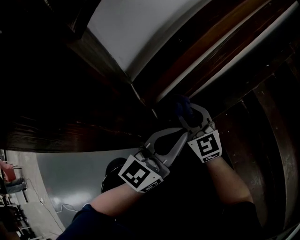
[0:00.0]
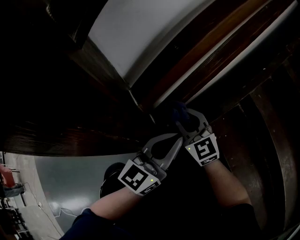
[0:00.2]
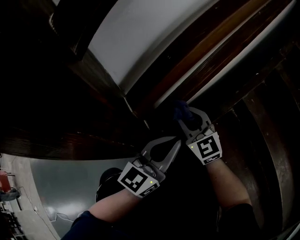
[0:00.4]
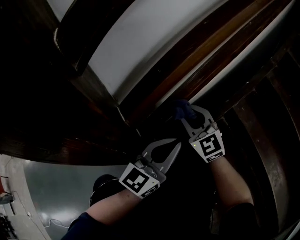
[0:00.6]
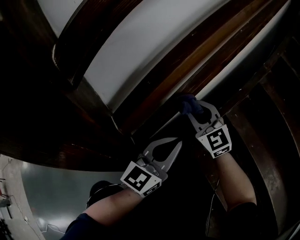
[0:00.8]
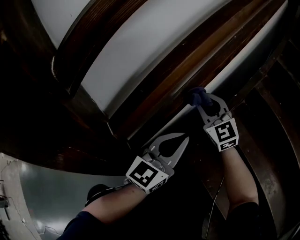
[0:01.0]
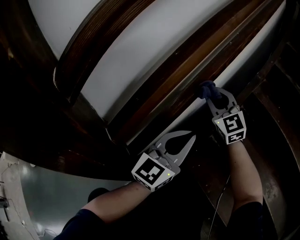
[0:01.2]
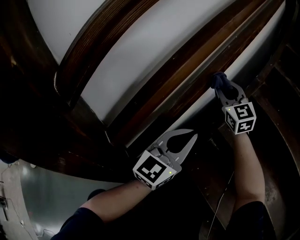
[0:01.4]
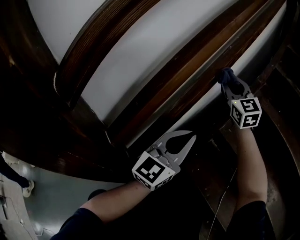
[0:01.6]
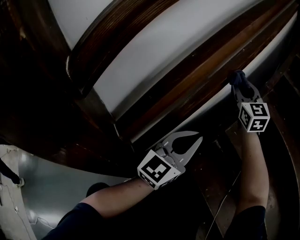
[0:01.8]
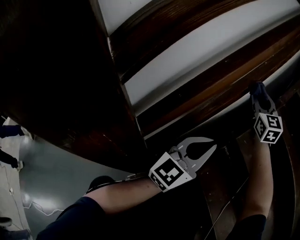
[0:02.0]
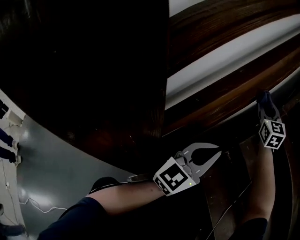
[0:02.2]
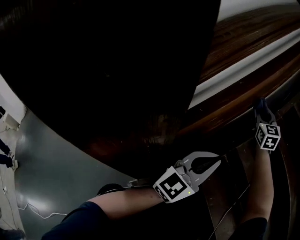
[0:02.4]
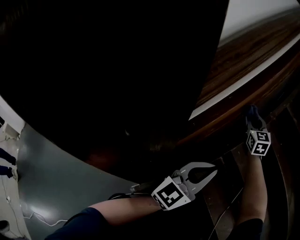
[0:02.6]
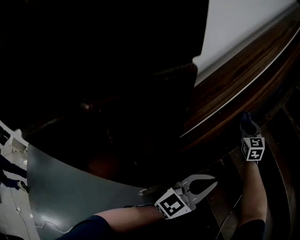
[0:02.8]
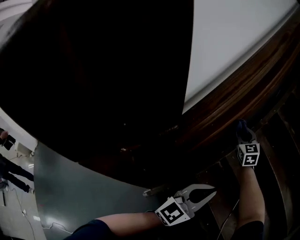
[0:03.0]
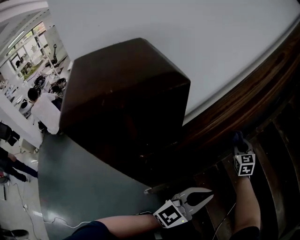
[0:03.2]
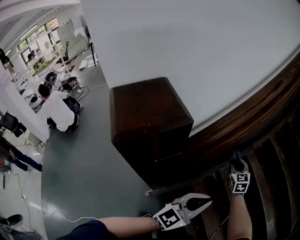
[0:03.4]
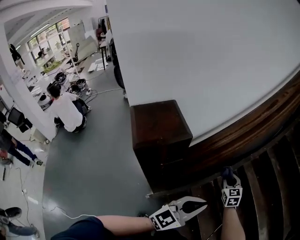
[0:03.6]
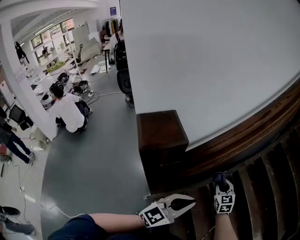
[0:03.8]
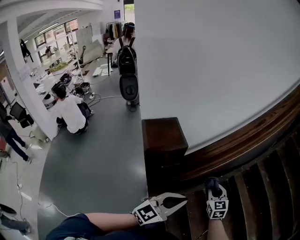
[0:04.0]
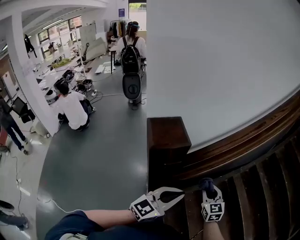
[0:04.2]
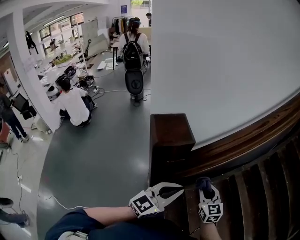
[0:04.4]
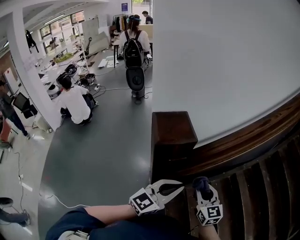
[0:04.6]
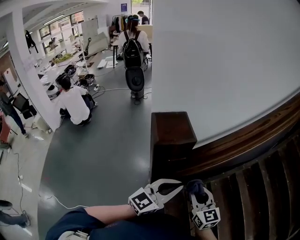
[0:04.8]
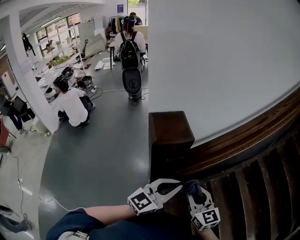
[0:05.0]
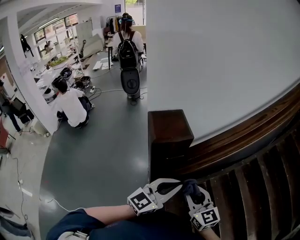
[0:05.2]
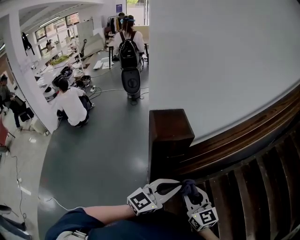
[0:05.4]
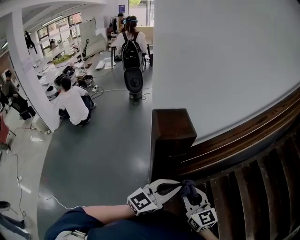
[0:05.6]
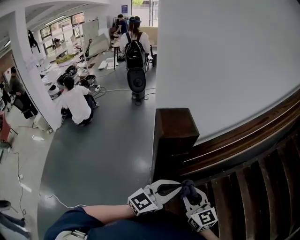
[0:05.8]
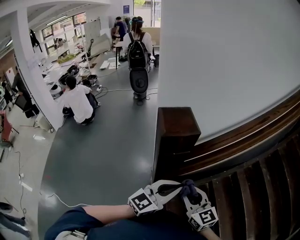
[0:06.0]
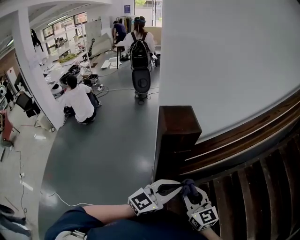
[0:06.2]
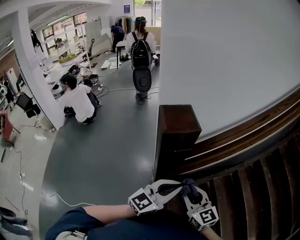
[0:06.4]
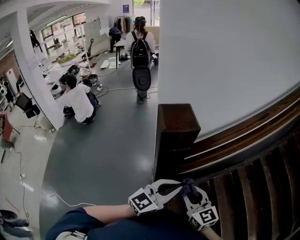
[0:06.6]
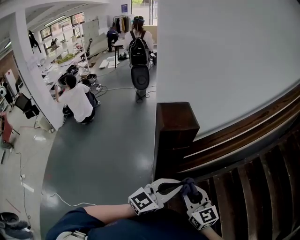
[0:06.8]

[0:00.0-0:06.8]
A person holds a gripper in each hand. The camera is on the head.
0:00.0 to 0:01.4: The right gripper is displaced to the right, forward and upward by approximately 40 cm, and changes its angle by roughly 30 degrees. Meanwhile the left gripper shifts about 20 cm to the right, forward and upward.
0:01.4 to 0:02.8: The left gripper shifts some 15 cm backward and upward. Meanwhile the right gripper shifts some 5 cm upward.
0:02.8 to 0:04.0: The right gripper shifts about 40 cm backward and upward. Meanwhile the left gripper heads upward and backward, covering roughly 40 cm.
0:04.0 to 0:05.4: The right gripper heads backward, to the left and upward, covering some 25 cm, and swivels about 30 degrees. The left gripper goes some 5 cm to the left.
0:05.4 to 0:06.8: There are only small adjustments of the grippers.

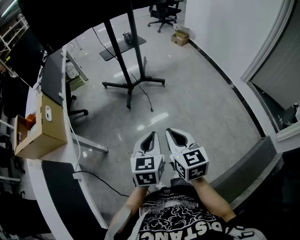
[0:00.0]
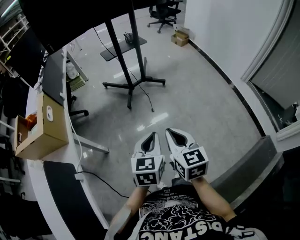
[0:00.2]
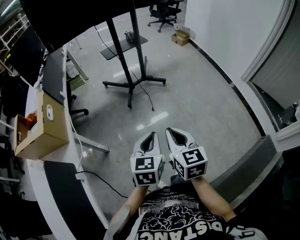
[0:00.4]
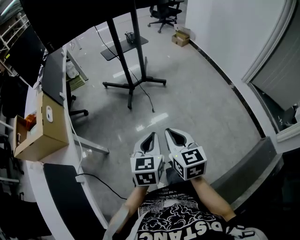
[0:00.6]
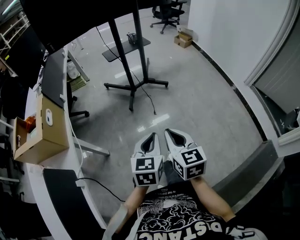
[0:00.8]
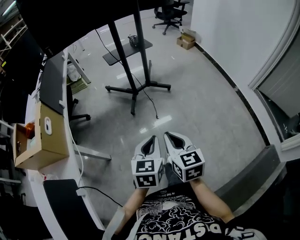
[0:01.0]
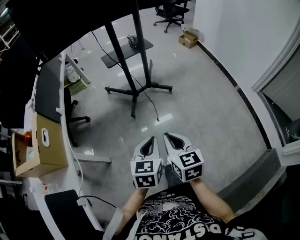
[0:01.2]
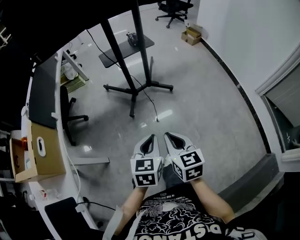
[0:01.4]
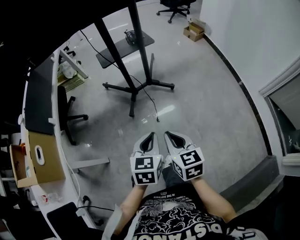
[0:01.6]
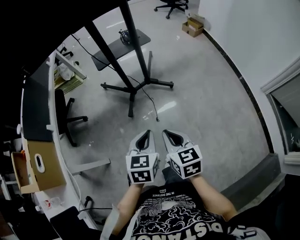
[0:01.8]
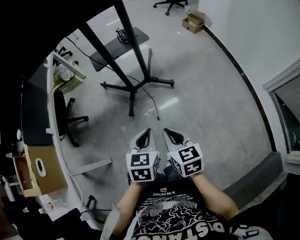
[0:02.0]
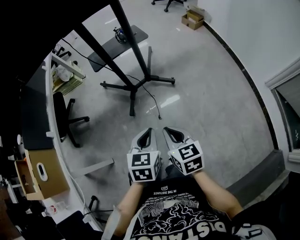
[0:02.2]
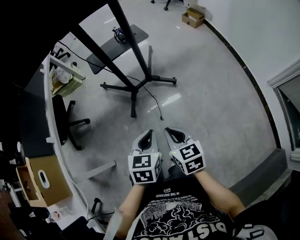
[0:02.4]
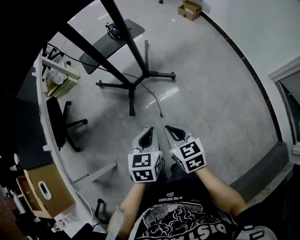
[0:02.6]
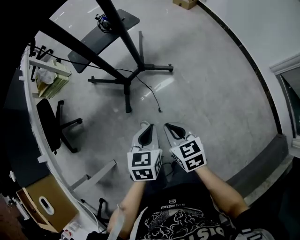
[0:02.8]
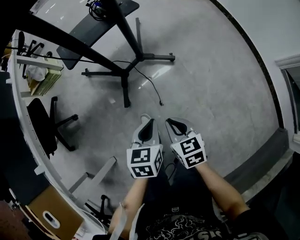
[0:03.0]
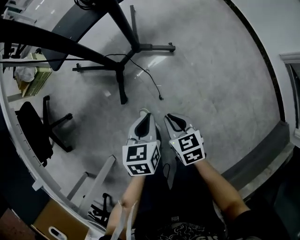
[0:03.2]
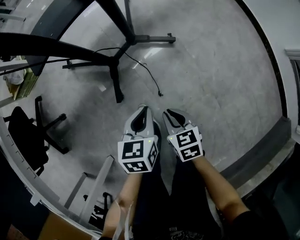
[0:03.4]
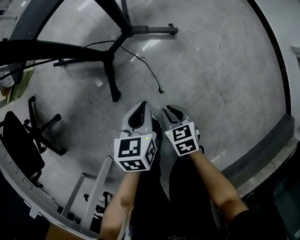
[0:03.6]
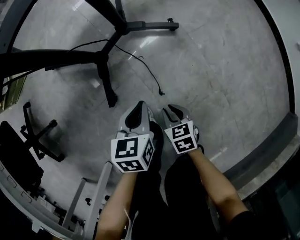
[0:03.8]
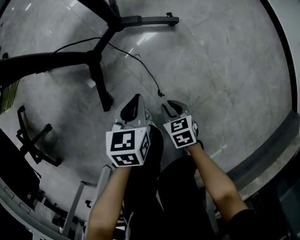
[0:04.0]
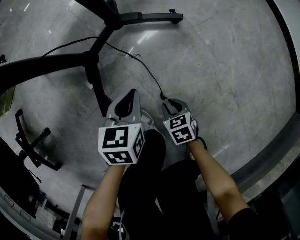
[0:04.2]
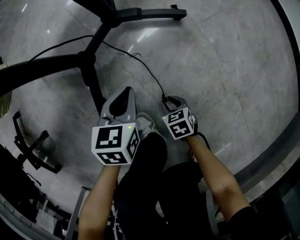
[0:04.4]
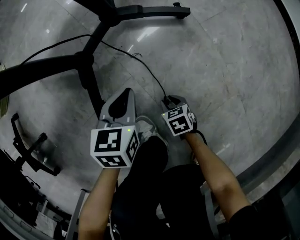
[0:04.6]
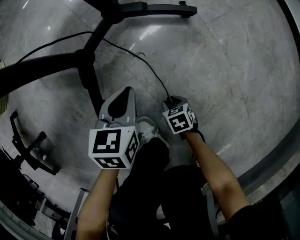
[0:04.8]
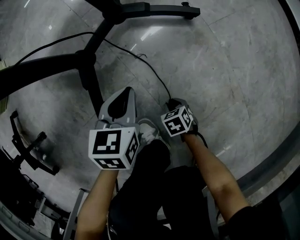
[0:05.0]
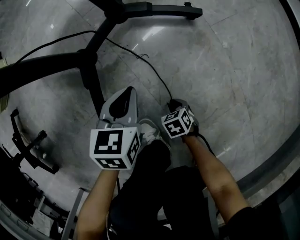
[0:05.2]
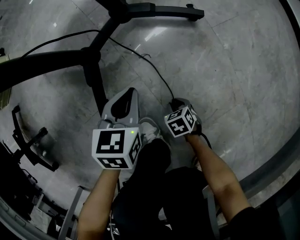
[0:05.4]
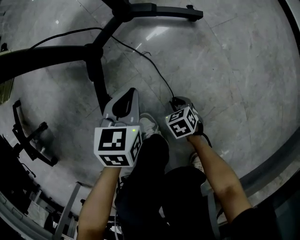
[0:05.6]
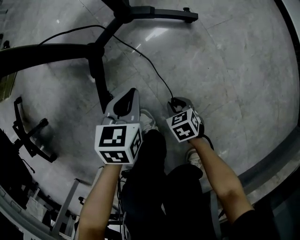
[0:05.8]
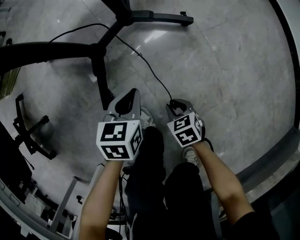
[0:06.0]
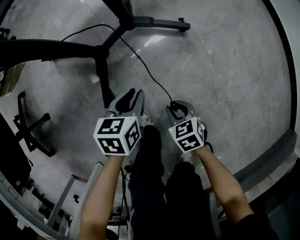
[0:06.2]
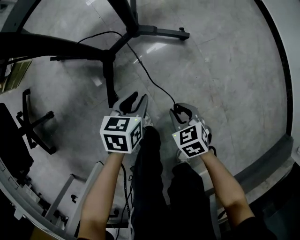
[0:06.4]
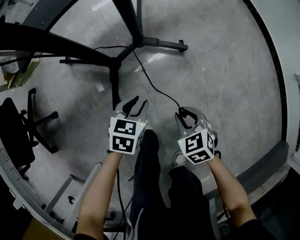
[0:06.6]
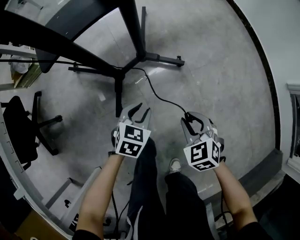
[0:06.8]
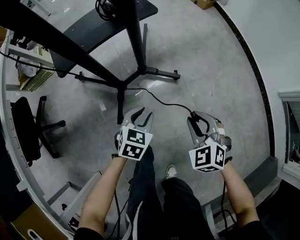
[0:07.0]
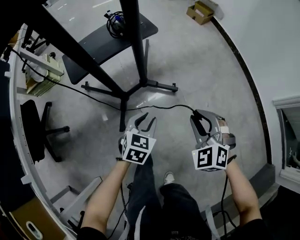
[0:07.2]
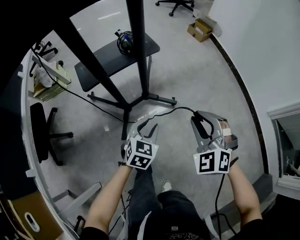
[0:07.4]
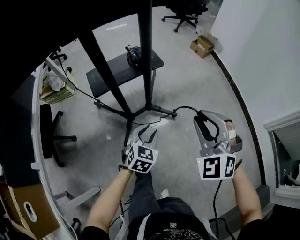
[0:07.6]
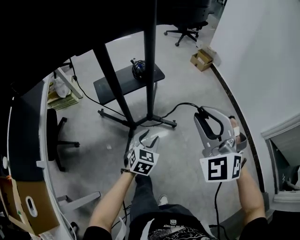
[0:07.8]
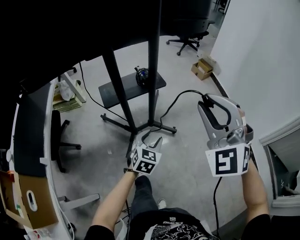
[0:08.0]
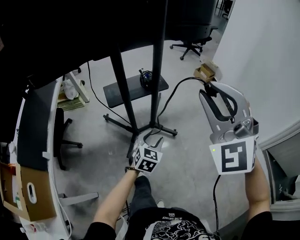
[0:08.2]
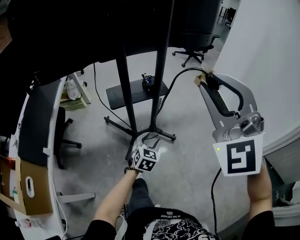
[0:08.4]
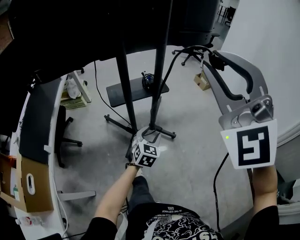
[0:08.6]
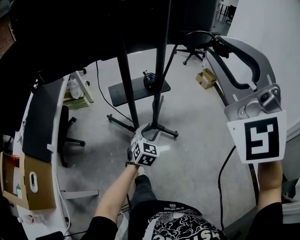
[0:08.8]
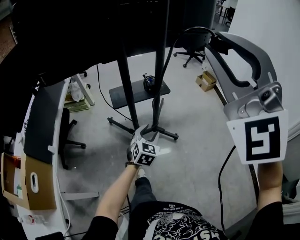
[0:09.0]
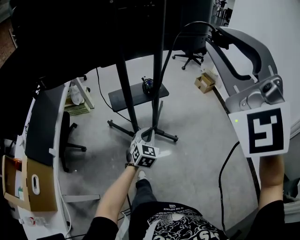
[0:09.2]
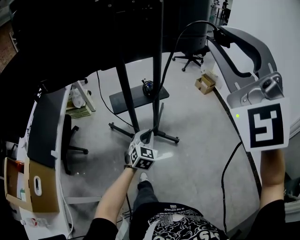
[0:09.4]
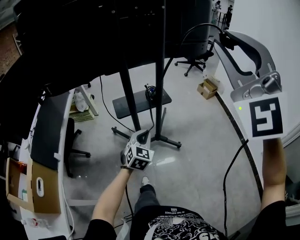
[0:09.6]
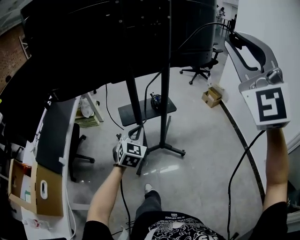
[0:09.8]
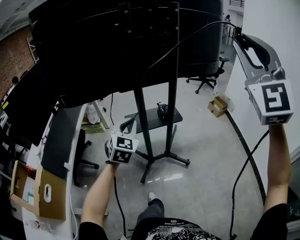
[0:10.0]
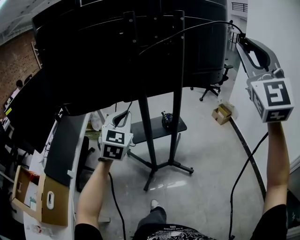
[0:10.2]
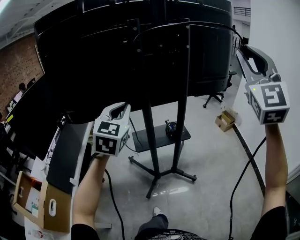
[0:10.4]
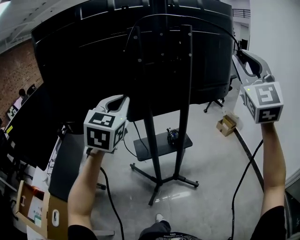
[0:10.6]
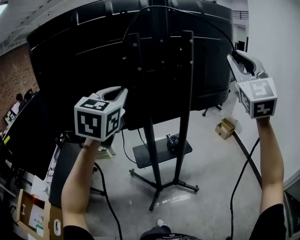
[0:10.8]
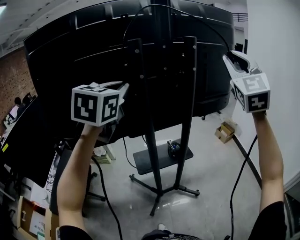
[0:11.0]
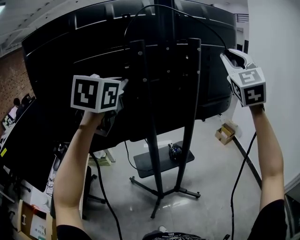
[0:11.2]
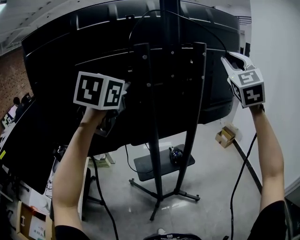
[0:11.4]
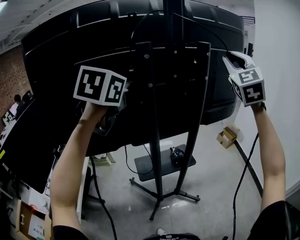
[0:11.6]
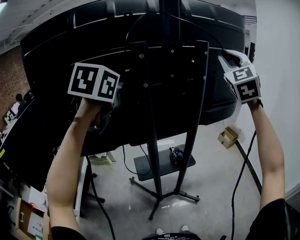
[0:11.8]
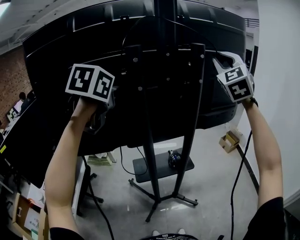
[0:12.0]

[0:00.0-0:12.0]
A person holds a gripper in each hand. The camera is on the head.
0:00.0 to 0:01.6: Both grippers travel together forward, roughly 25 cm.
0:01.6 to 0:03.0: The right gripper shifts some 30 cm downward and forward. Meanwhile the left gripper shifts about 30 cm forward and downward.
0:03.0 to 0:04.4: The right gripper heads downward, covering roughly 50 cm, changes its angle by approximately 30 degrees, and opens; the left gripper goes some 40 cm downward and forward.
0:04.4 to 0:06.0: The right gripper shifts some 10 cm upward.
0:06.0 to 0:07.6: The left gripper travels upward by approximately 40 cm, rotates about 30 degrees, and opens its fingers, while the right gripper heads upward, covering approximately 70 cm, and points its fingers about 40 degrees further upward.
0:07.6 to 0:09.0: The left gripper shifts some 10 cm upward, while the right gripper moves upward, roughly 40 cm, and tilts its fingers some 30 degrees upward.
0:09.0 to 0:10.4: The left gripper heads upward and to the left, covering roughly 40 cm, swivels approximately 20 degrees, and closes up. The right gripper heads forward, upward and to the right, covering roughly 20 cm, and rotates roughly 20 degrees.
0:10.4 to 0:12.0: The left gripper shifts some 20 cm forward and upward, and changes its angle by some 20 degrees. The right gripper moves forward, some 30 cm.

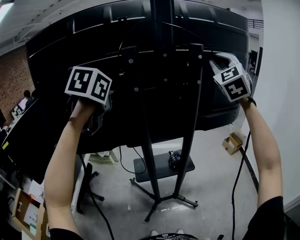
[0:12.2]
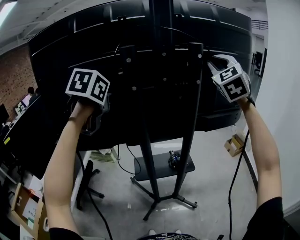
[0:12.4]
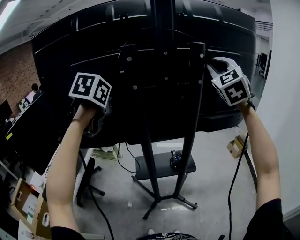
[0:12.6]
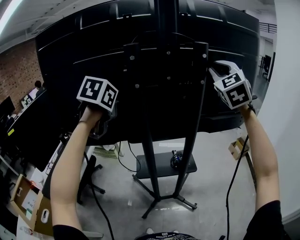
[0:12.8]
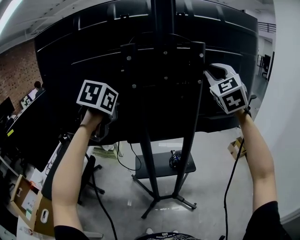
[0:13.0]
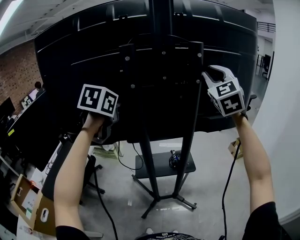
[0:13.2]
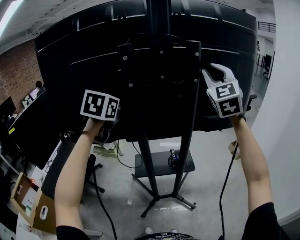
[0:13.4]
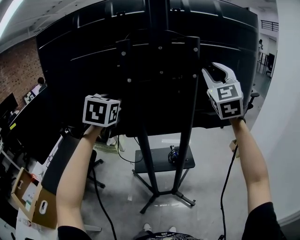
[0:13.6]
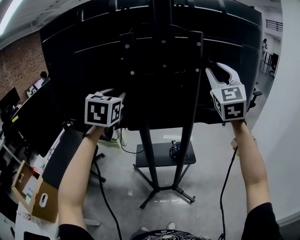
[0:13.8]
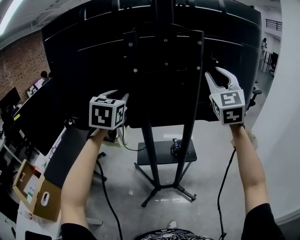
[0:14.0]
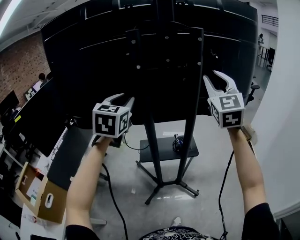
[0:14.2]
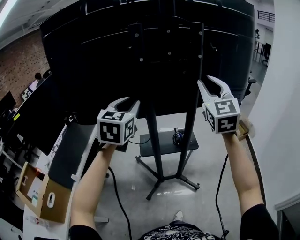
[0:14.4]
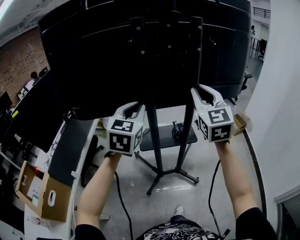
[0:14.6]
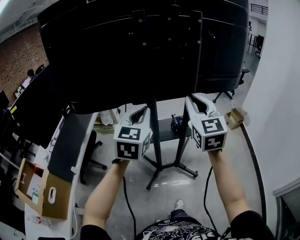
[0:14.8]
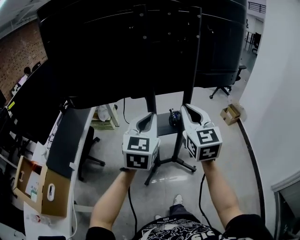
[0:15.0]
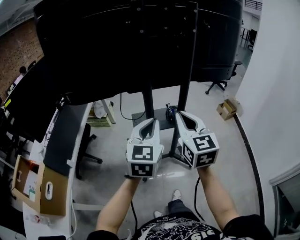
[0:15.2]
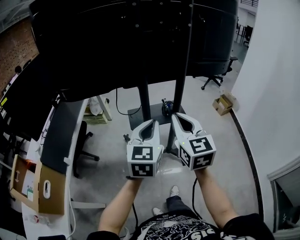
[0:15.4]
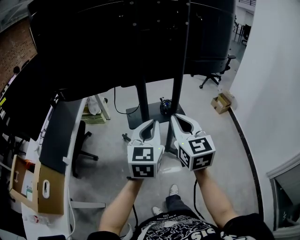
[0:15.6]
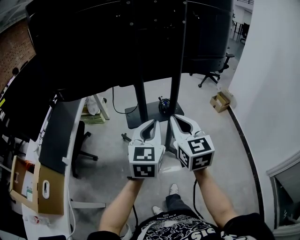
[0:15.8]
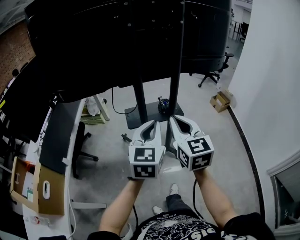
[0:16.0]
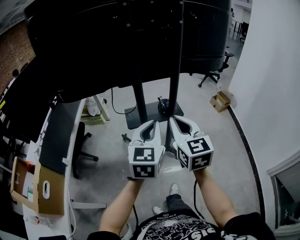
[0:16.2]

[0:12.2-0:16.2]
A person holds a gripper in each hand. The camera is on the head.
0:12.2 to 0:13.6: The left gripper travels downward by roughly 5 cm, and changes its angle by roughly 20 degrees; the right gripper ends up about 5 cm from where it was, and changes its angle by approximately 20 degrees.
0:13.6 to 0:14.8: The right gripper moves backward, downward and to the left, about 30 cm, turns by roughly 20 degrees, and closes up; the left gripper travels backward and downward by about 20 cm, and closes its fingers.
0:14.8 to 0:16.2: The left gripper goes approximately 15 cm backward, downward and to the right; the right gripper shifts some 15 cm backward and downward.
